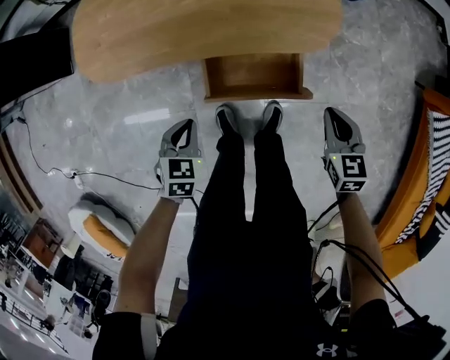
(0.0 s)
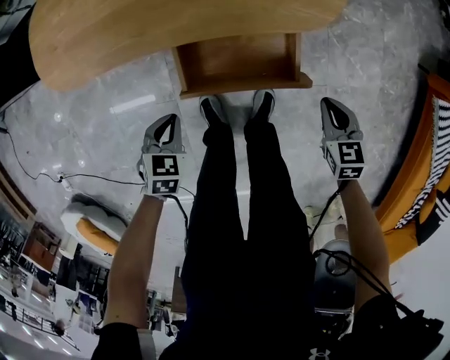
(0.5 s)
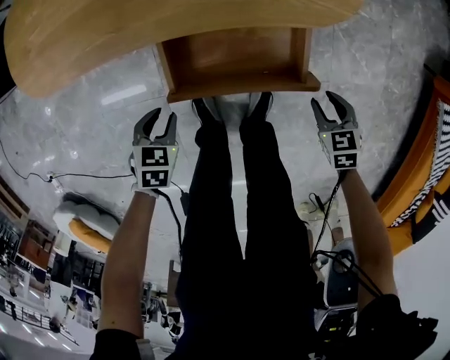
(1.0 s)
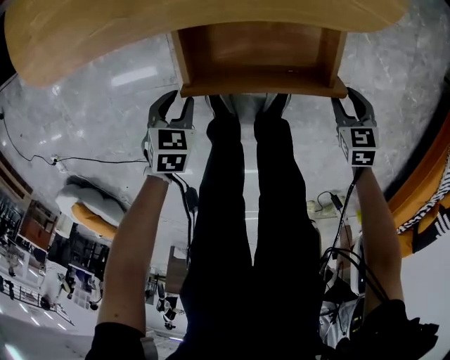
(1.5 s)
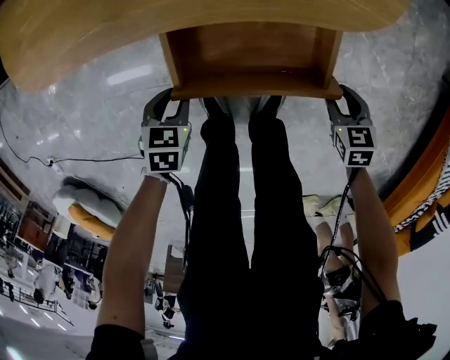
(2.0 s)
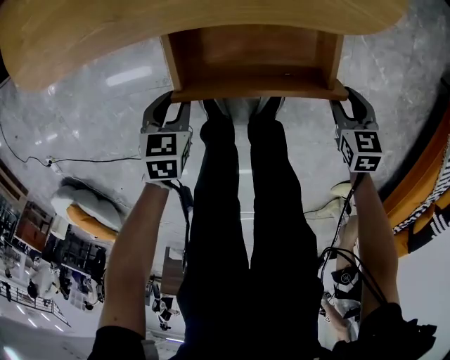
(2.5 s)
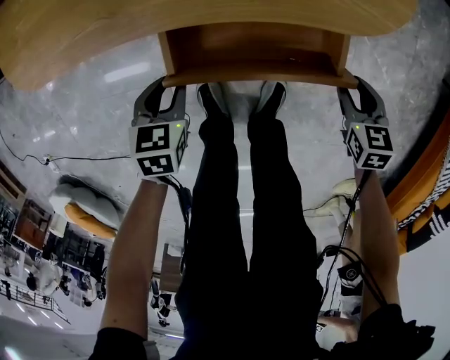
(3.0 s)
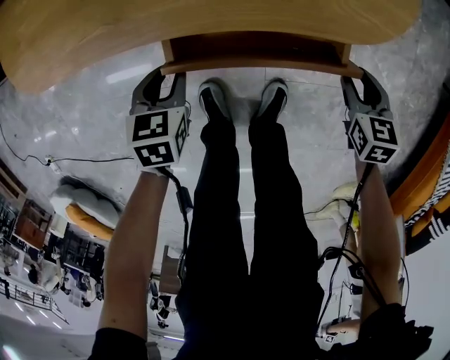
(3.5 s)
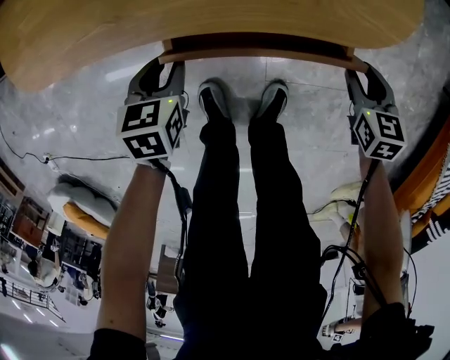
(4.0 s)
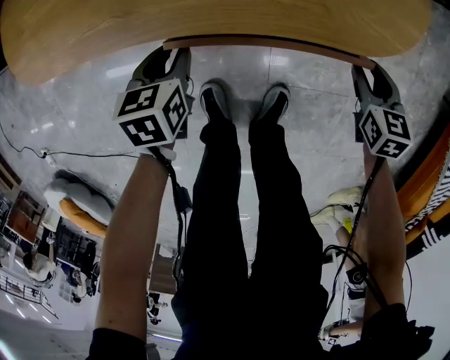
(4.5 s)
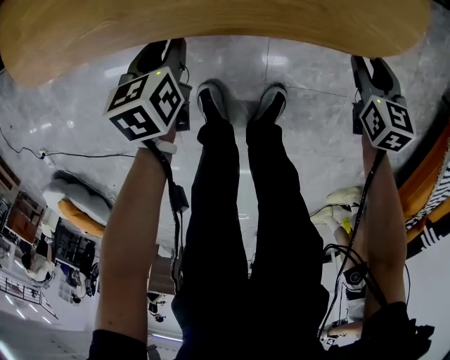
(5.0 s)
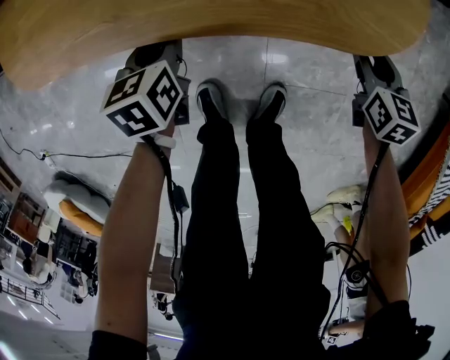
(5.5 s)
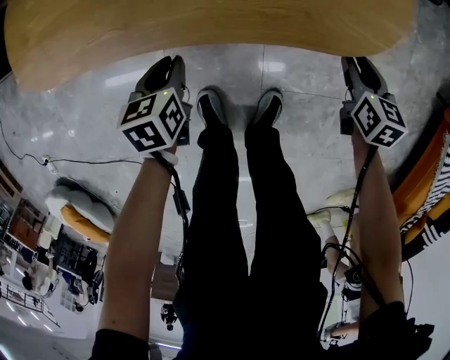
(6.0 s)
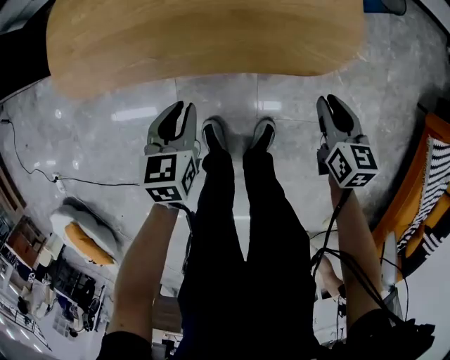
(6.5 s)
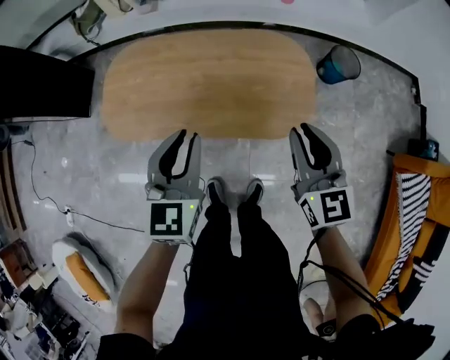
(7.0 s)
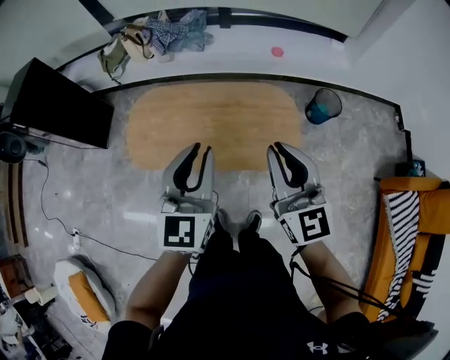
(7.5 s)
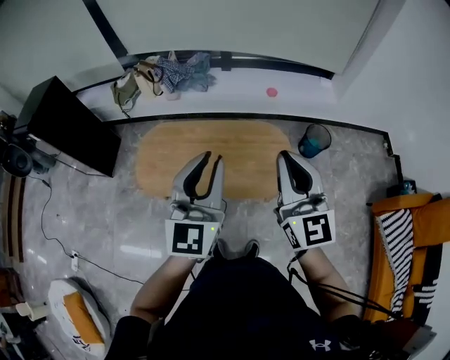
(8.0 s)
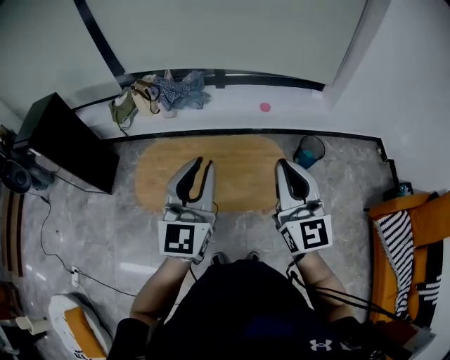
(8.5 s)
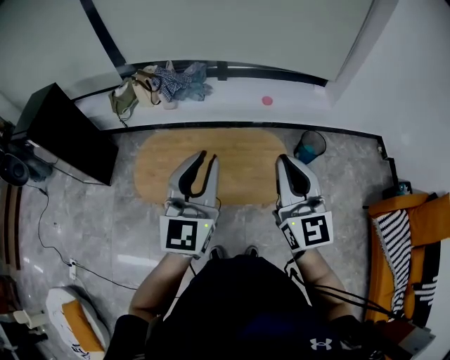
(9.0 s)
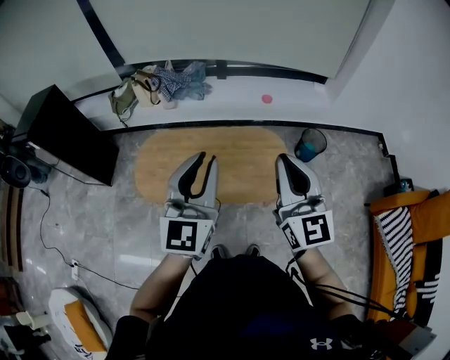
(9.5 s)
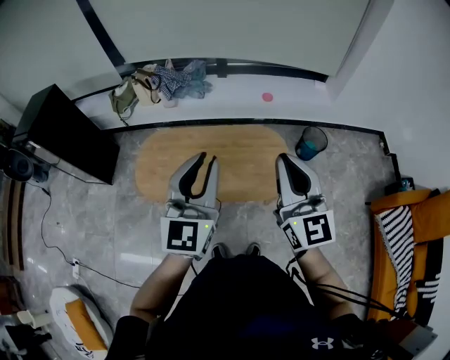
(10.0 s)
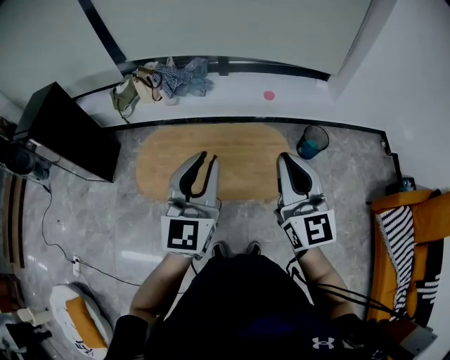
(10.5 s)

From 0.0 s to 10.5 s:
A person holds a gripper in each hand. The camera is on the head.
From 0.0 s to 2.0 s: Both grippers move downward, about 25 cm. The left gripper opens up; the right gripper swivels some 20 degrees, and opens up.
From 2.0 s to 4.0 s: The grippers both shift forward by approximately 10 cm.
From 4.0 s to 6.5 s: Both grippers move upward, some 15 cm.
From 6.5 s to 8.5 s: Both grippers move upward, approximately 70 cm. The left gripper angles its fingers upward, by roughly 60 degrees, while the right gripper angles its fingers upward, by about 50 degrees, and closes.
From 8.5 s to 10.5 s: There are only small adjustments of the grippers.

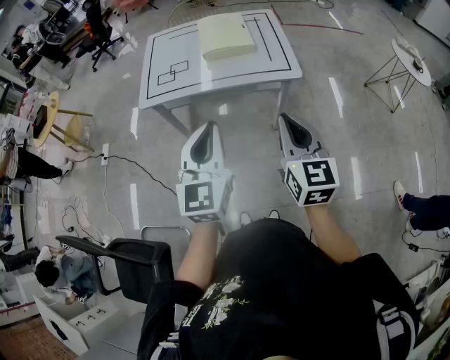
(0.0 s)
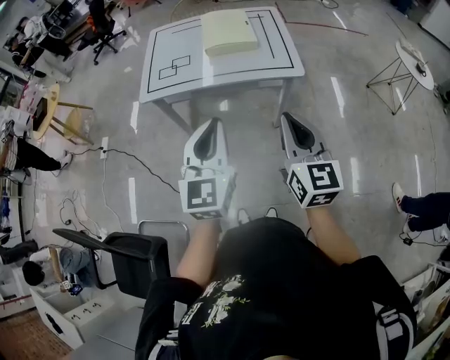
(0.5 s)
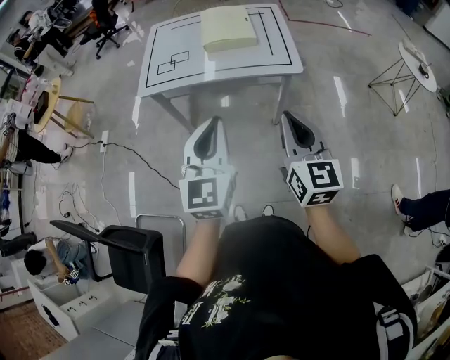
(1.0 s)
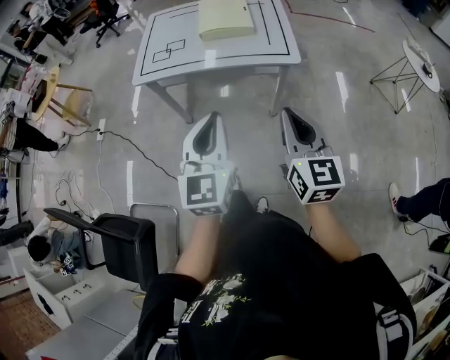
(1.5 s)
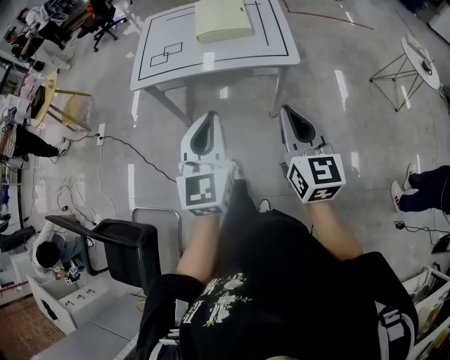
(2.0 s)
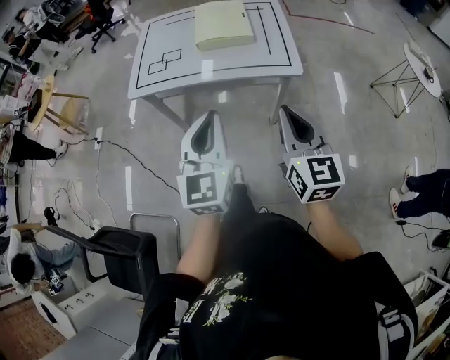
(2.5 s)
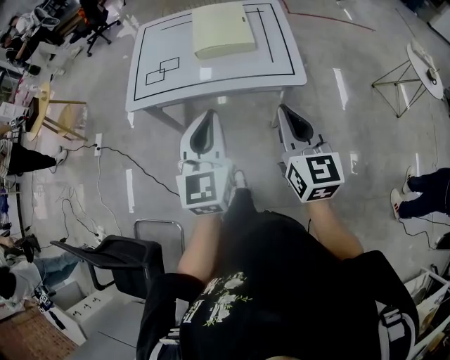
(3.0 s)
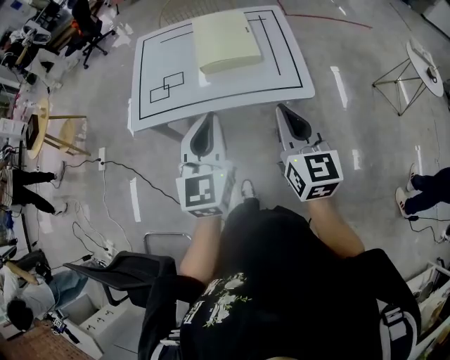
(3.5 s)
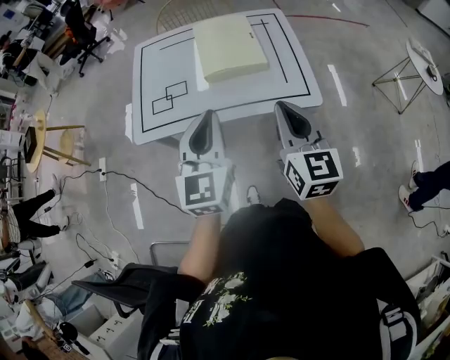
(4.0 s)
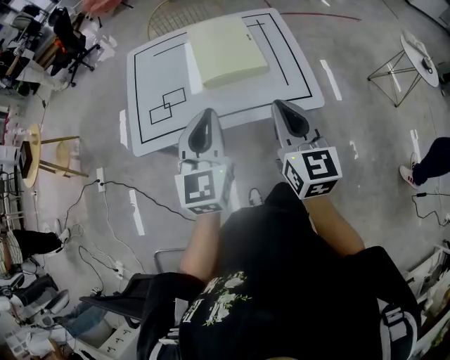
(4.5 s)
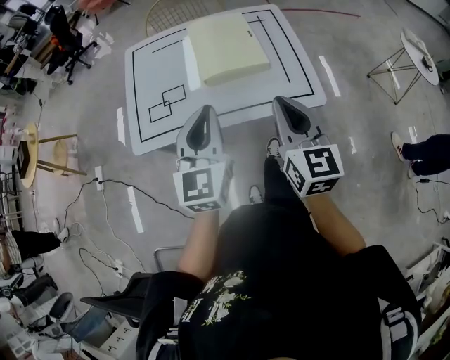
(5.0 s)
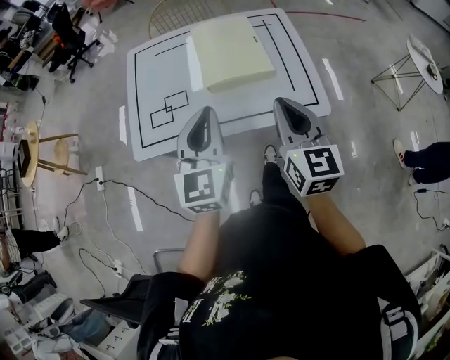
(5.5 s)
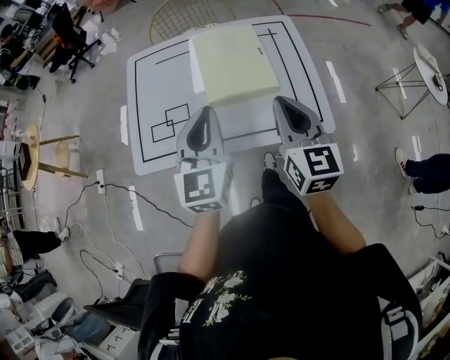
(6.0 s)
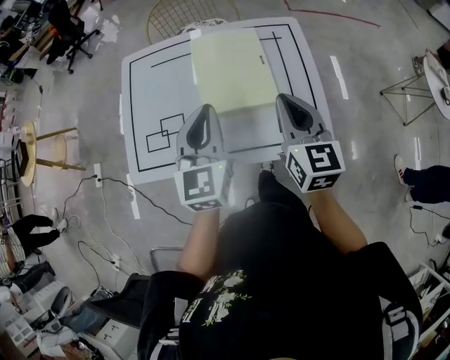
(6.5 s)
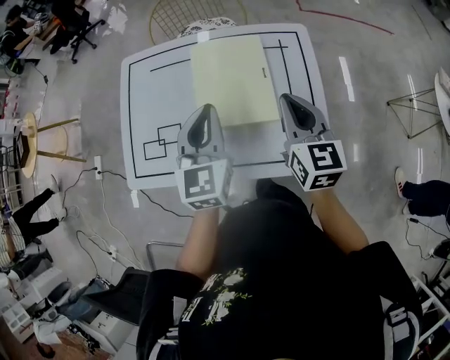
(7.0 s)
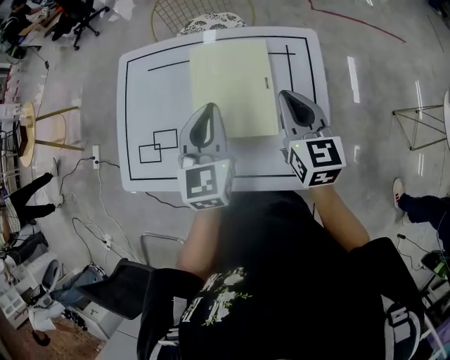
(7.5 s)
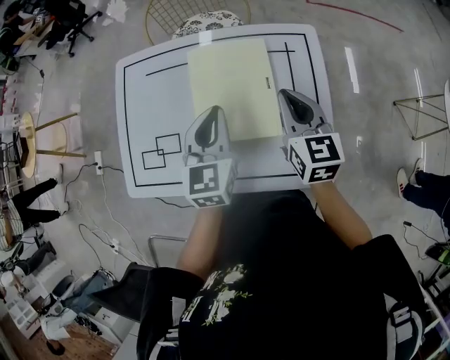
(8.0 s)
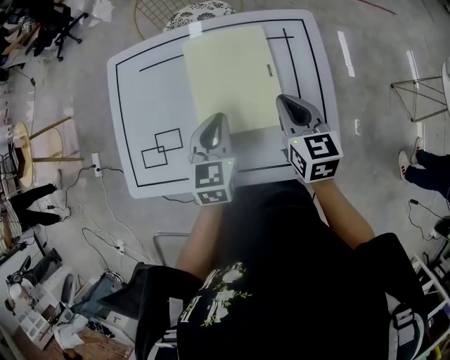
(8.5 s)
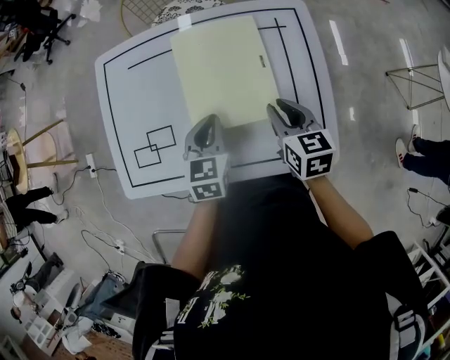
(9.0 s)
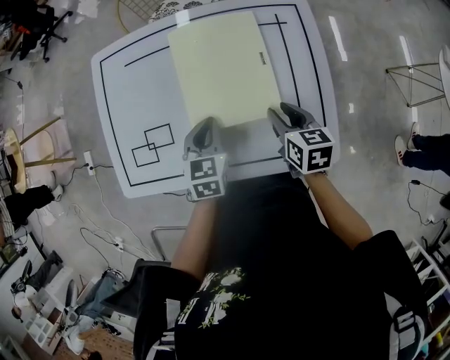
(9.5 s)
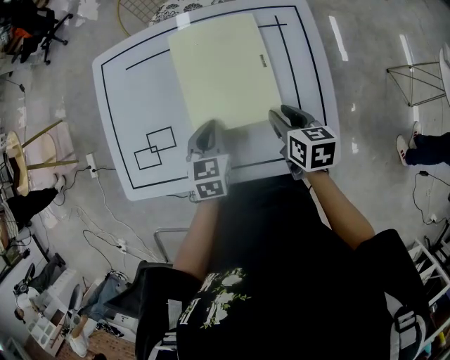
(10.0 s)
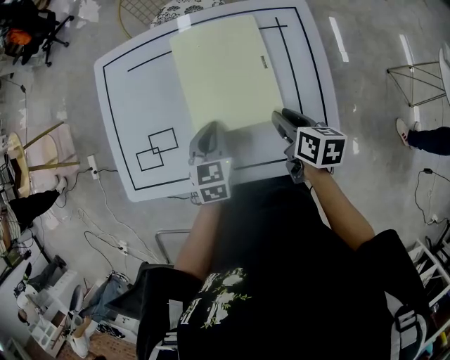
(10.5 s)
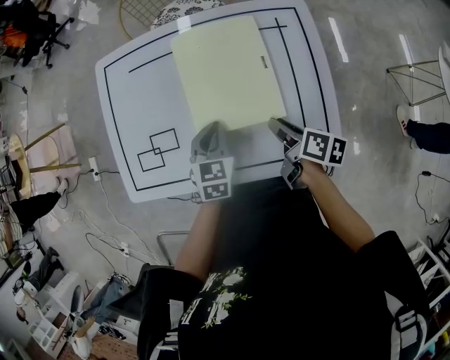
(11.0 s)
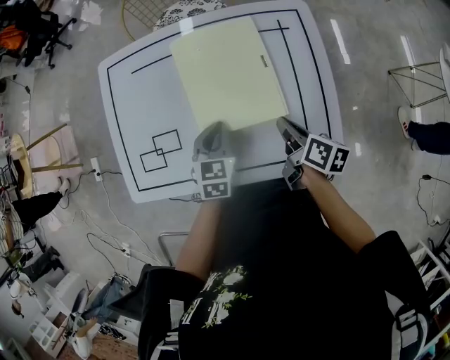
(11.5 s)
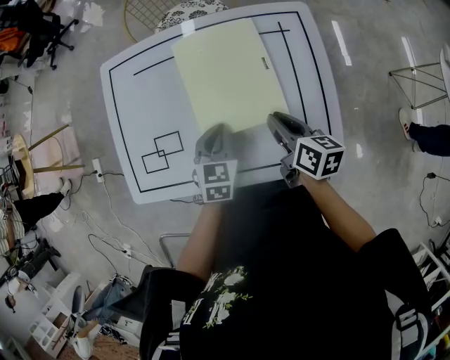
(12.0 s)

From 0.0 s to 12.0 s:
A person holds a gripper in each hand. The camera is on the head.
From 0.0 s to 2.0 s: The left gripper shifts by approximately 5 cm. The right gripper shifts by about 5 cm.
From 2.0 s to 4.0 s: Both grippers travel together forward, some 25 cm.
From 4.0 s to 6.0 s: Both grippers travel together forward, some 15 cm.
From 6.0 s to 8.0 s: Both grippers move forward, about 20 cm.
From 8.0 s to 10.0 s: The left gripper shifts roughly 15 cm downward, and turns by roughly 20 degrees; the right gripper shifts some 15 cm downward and backward, rotates roughly 30 degrees, and opens.
From 10.0 s to 12.0 s: The right gripper closes.

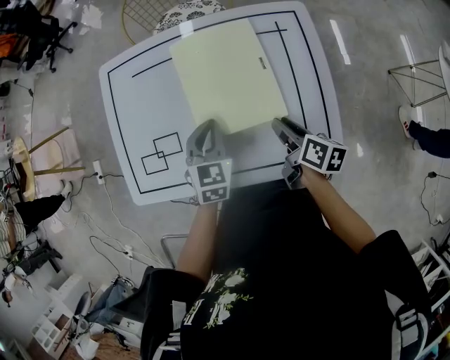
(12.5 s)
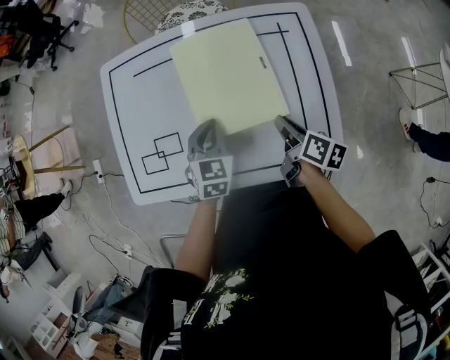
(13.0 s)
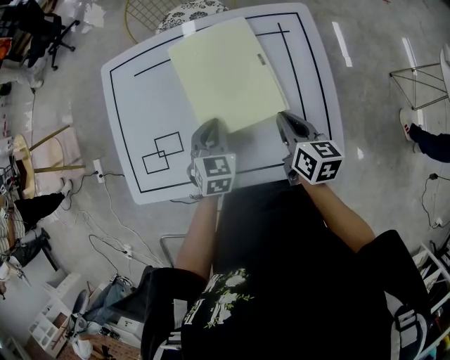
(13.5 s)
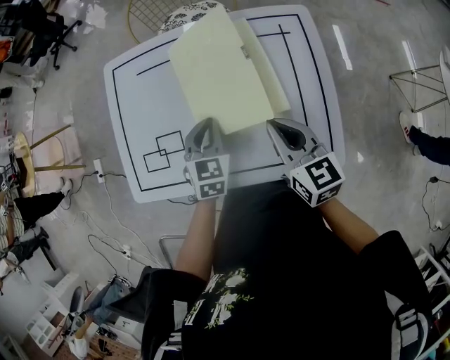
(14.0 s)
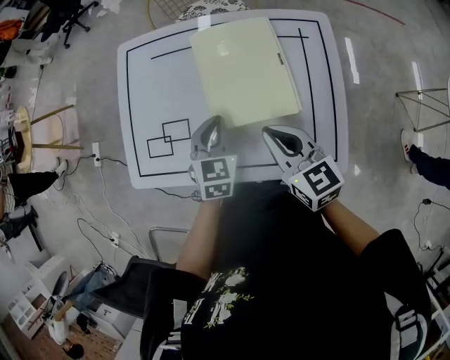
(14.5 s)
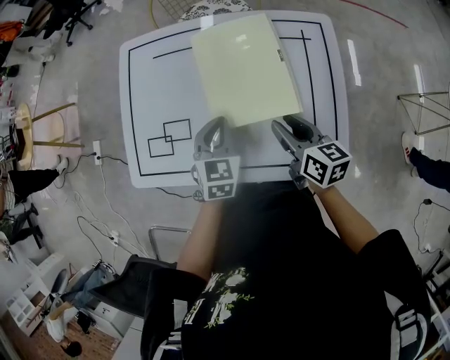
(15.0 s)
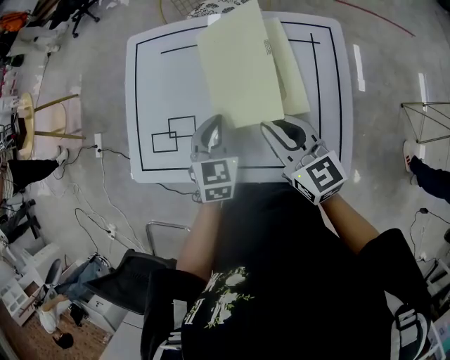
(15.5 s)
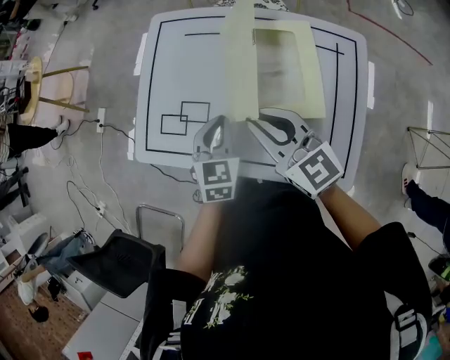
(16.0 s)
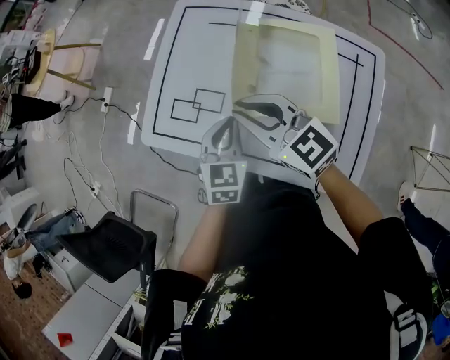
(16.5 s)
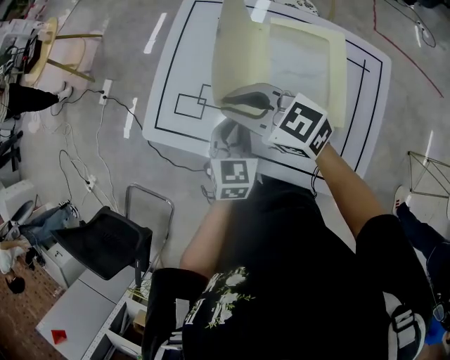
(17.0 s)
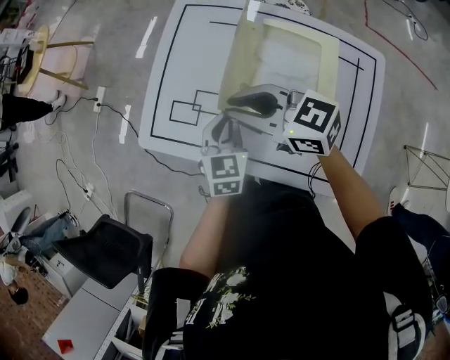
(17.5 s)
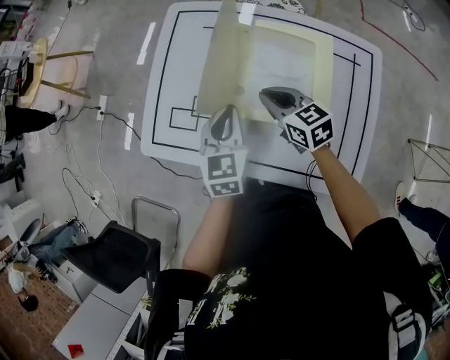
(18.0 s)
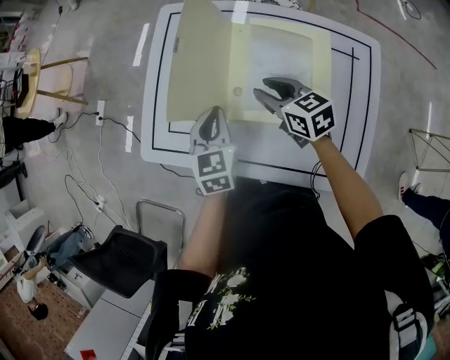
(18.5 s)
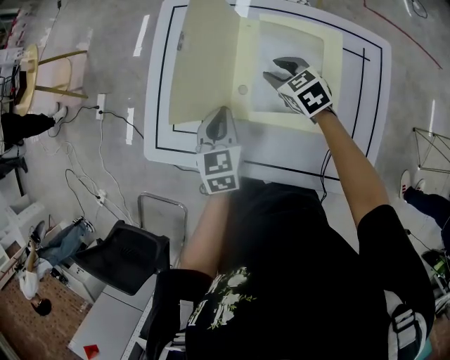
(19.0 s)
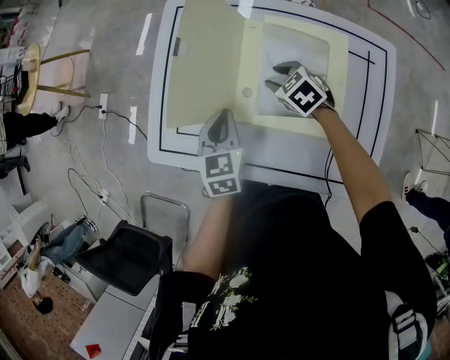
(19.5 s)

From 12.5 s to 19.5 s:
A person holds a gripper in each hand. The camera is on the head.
From 12.5 s to 14.5 s: The right gripper shifts approximately 15 cm upward and to the left, rotates around the line of its fingers by about 50 degrees, counterclockwise from behind, and closes its fingers.
From 14.5 s to 16.0 s: Both grippers travel together to the left, roughly 5 cm. The right gripper changes its angle by about 20 degrees, and opens and closes again.
From 16.0 s to 17.5 s: The right gripper is displaced to the left and forward by about 10 cm, and swivels about 30 degrees.
From 17.5 s to 19.5 s: The right gripper goes some 25 cm downward and to the right, points its fingers roughly 40 degrees further downward, and opens. The left gripper changes place by some 5 cm.
